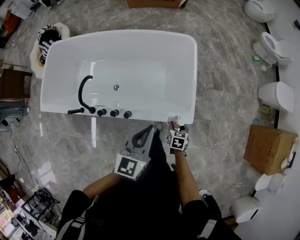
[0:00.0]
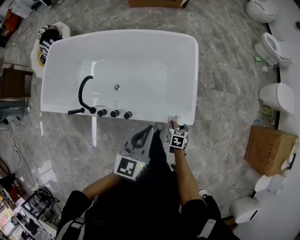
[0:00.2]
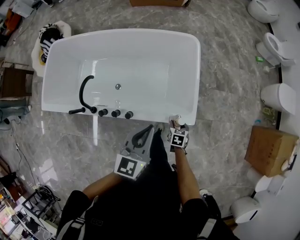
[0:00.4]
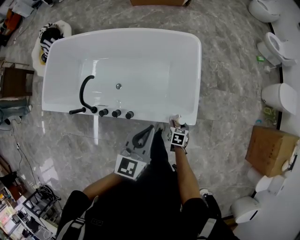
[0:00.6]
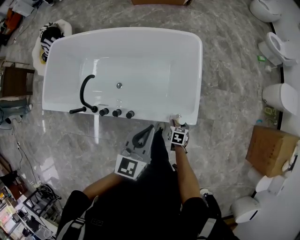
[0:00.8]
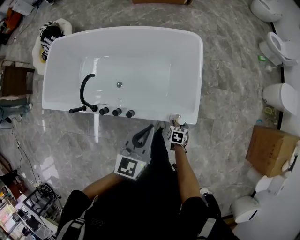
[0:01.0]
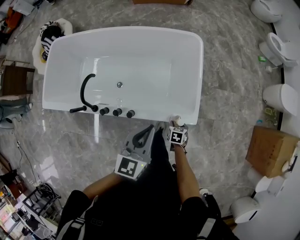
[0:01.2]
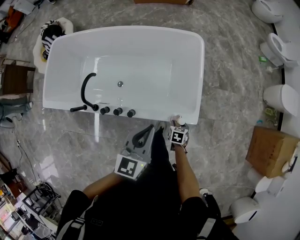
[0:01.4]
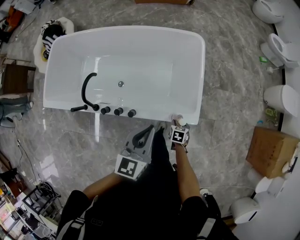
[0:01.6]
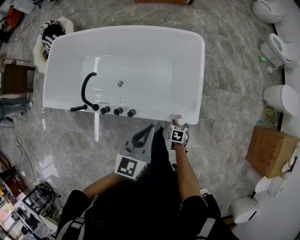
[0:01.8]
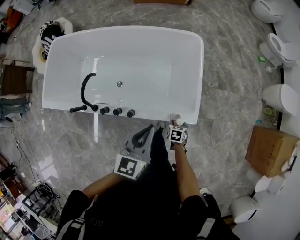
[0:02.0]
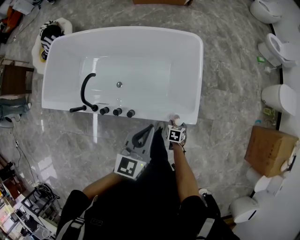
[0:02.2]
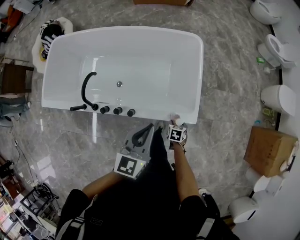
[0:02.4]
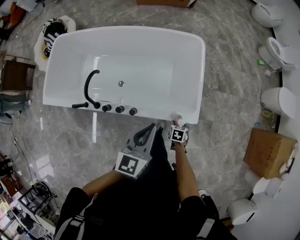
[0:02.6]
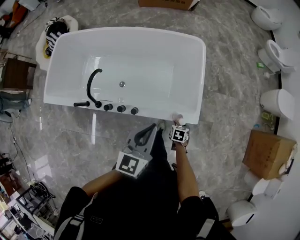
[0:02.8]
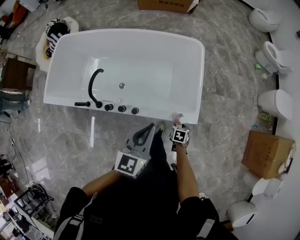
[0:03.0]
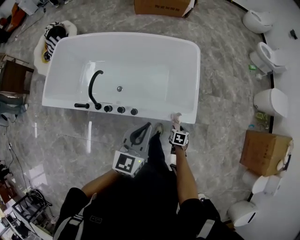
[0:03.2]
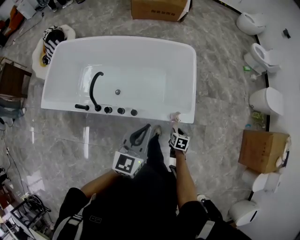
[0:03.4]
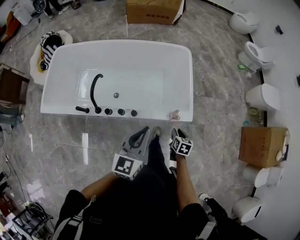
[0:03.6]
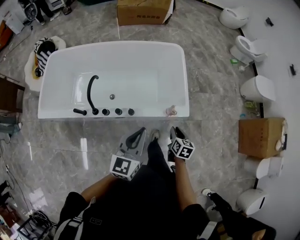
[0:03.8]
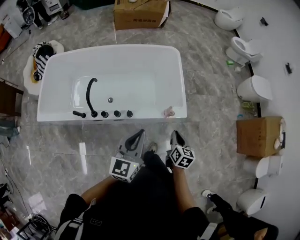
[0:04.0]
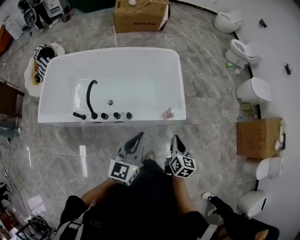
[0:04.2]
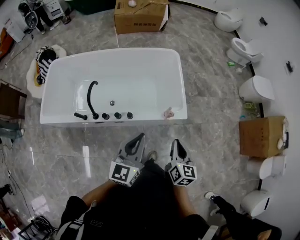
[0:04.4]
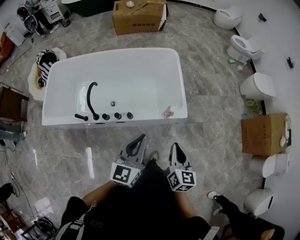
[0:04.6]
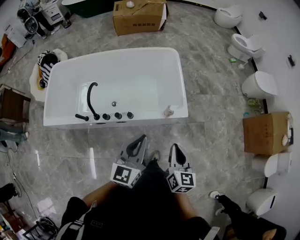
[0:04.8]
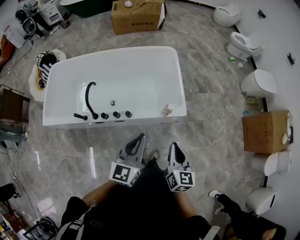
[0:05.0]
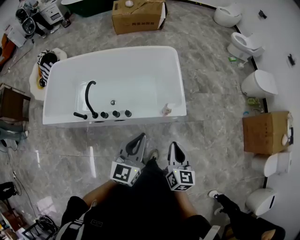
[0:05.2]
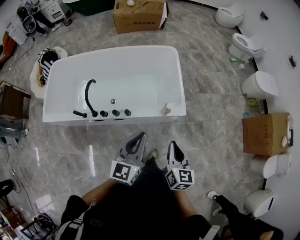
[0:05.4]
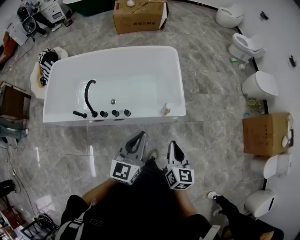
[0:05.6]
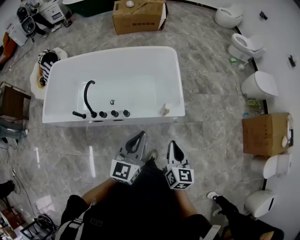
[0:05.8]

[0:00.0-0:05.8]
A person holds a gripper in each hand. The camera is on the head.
0:00.0 to 0:01.4: The right gripper goes about 5 cm downward.
0:01.4 to 0:02.8: The grippers move only a little.
0:02.8 to 0:04.4: The right gripper travels upward and backward by about 40 cm, points its fingers about 50 degrees further upward, and closes its fingers; the left gripper travels backward by about 20 cm.
0:04.4 to 0:05.8: The left gripper heads to the right, covering roughly 5 cm.

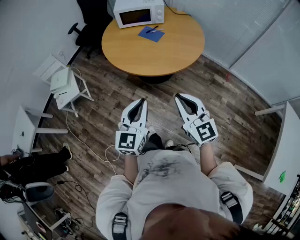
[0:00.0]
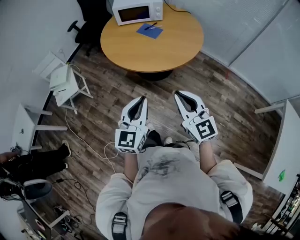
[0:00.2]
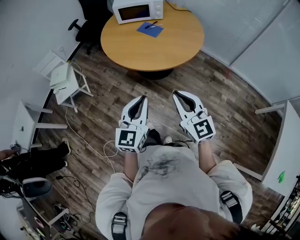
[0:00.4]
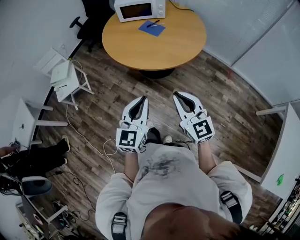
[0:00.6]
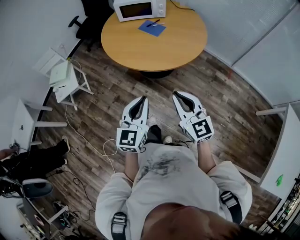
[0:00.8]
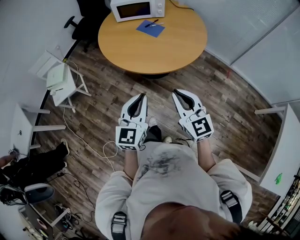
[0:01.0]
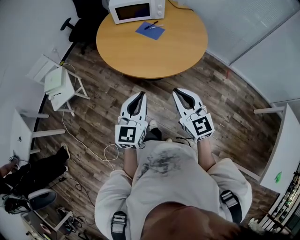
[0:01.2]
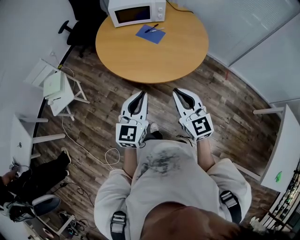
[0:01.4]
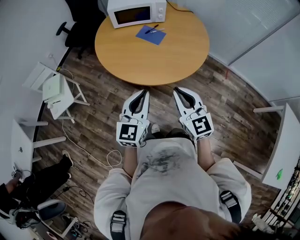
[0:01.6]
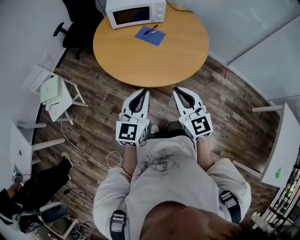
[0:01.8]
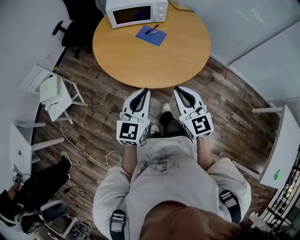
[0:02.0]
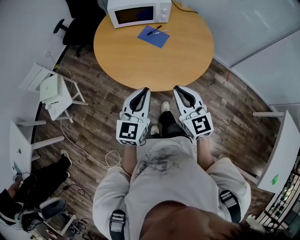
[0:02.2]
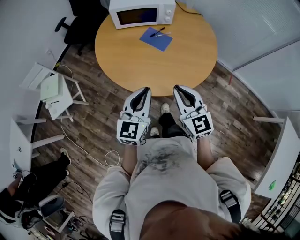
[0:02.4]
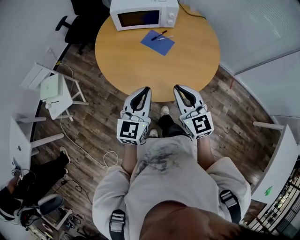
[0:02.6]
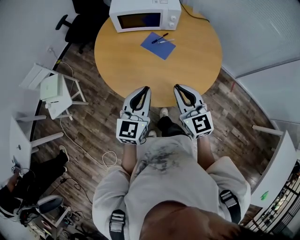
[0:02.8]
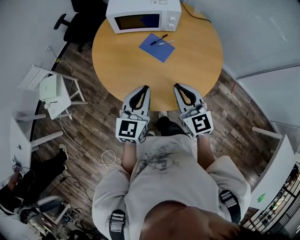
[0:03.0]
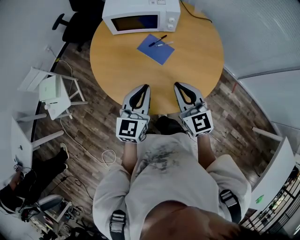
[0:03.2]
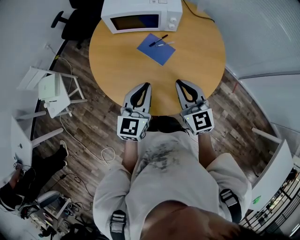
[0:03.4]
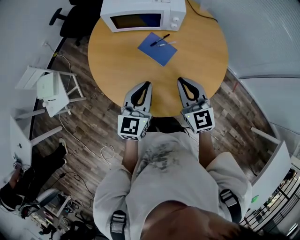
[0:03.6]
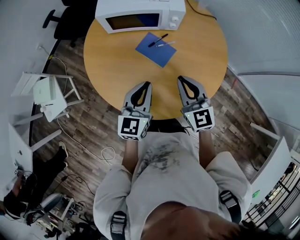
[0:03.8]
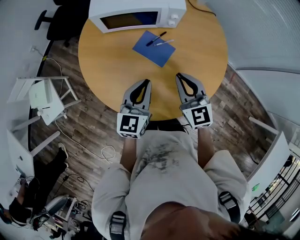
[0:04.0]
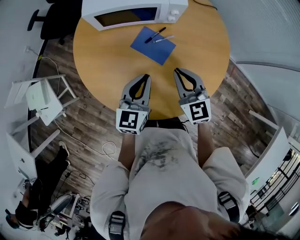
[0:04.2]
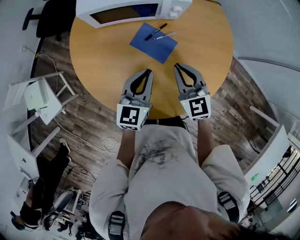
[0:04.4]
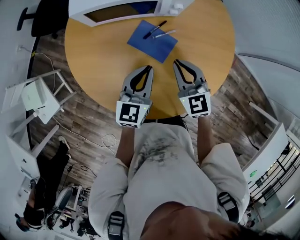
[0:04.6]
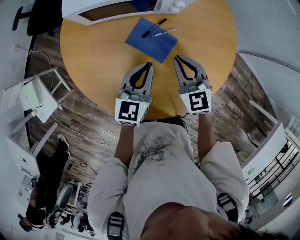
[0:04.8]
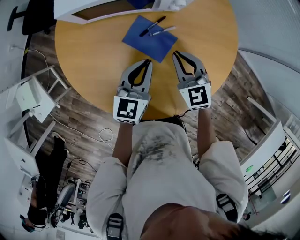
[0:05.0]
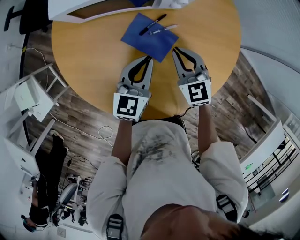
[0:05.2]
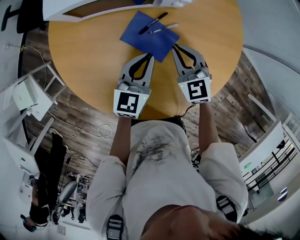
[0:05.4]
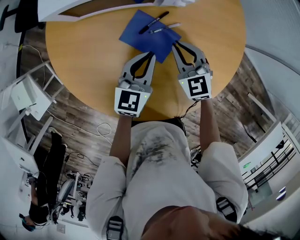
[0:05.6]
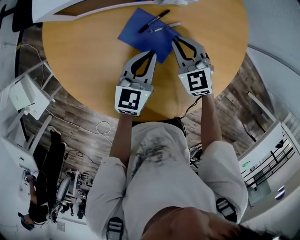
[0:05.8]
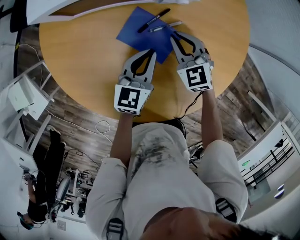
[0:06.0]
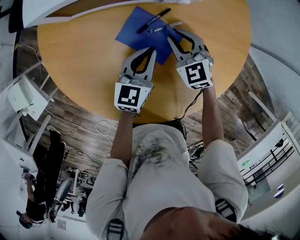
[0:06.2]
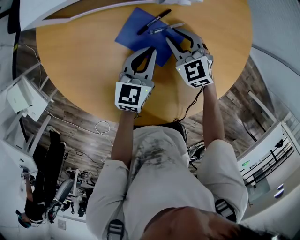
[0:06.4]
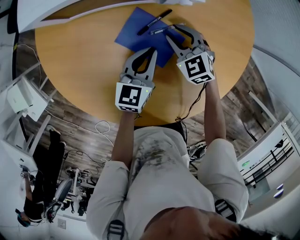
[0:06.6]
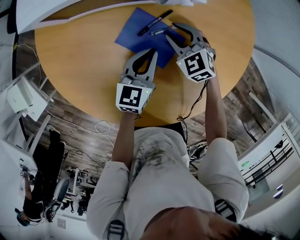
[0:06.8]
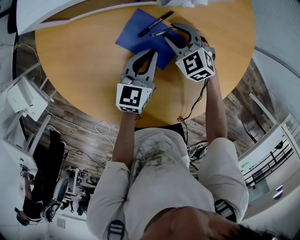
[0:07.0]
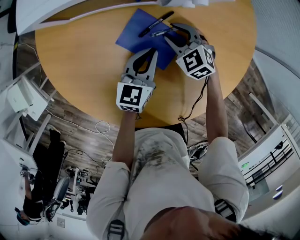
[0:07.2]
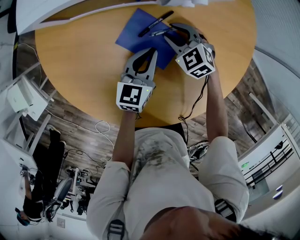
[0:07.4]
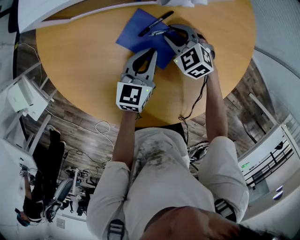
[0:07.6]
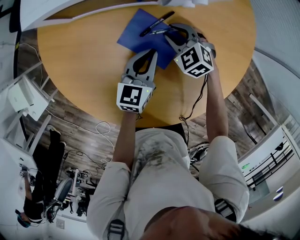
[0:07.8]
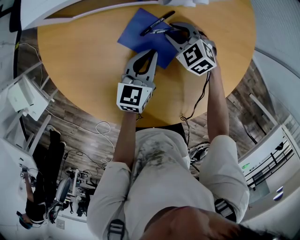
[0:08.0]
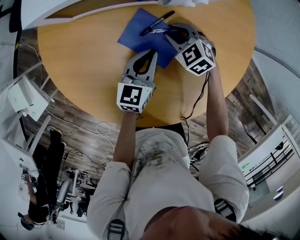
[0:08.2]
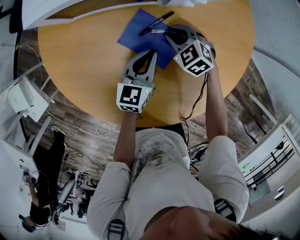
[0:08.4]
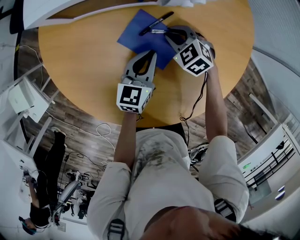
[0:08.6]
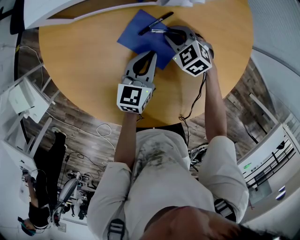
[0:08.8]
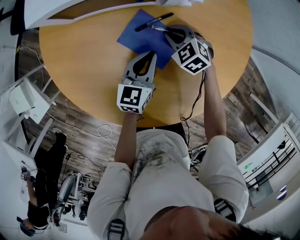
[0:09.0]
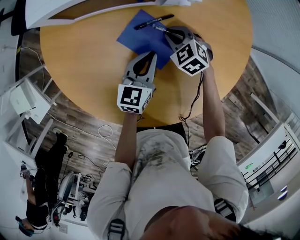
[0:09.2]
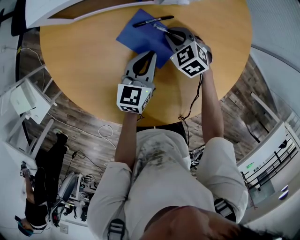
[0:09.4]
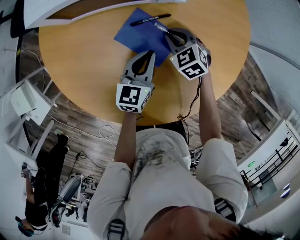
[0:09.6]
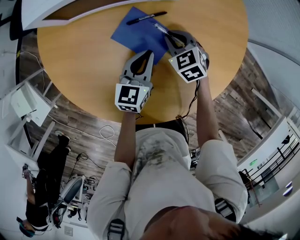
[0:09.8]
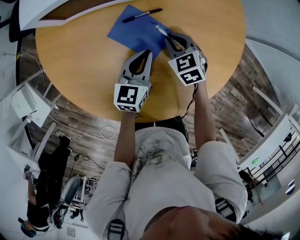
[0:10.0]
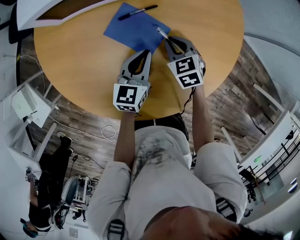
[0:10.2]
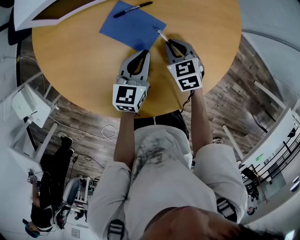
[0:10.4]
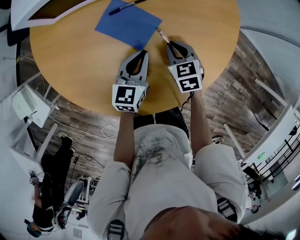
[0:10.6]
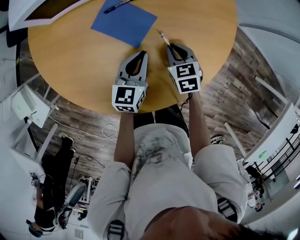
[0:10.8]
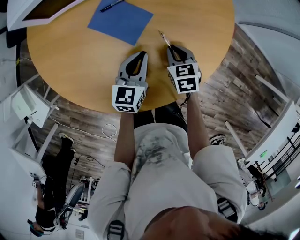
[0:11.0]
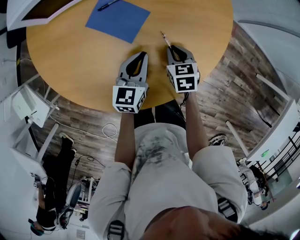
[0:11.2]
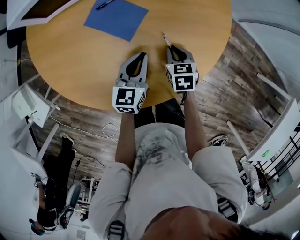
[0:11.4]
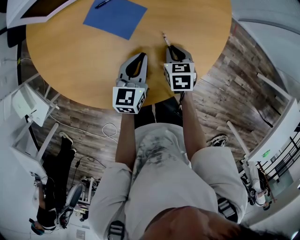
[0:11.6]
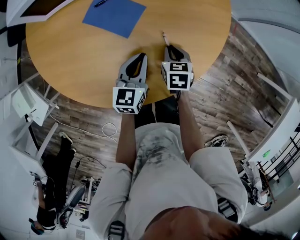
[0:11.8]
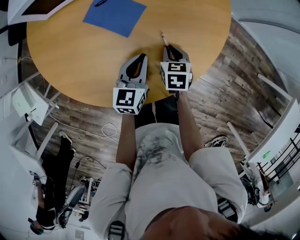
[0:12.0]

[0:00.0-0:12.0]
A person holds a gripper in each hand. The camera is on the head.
0:00.0 to 0:01.6: Both grippers move forward, roughly 15 cm.
0:01.6 to 0:03.0: Both grippers travel together forward, approximately 25 cm.
0:03.0 to 0:04.4: Both grippers travel together forward and downward, roughly 25 cm.
0:04.4 to 0:06.0: Both grippers travel together downward and forward, approximately 20 cm.
0:06.0 to 0:07.6: The right gripper travels downward by some 10 cm, changes its angle by some 20 degrees, and opens up.
0:07.6 to 0:09.0: There are only small adjustments of the grippers.
0:09.0 to 0:10.4: The right gripper heads backward and to the right, covering approximately 15 cm, and rotates roughly 30 degrees, while the left gripper travels backward by approximately 5 cm.
0:10.4 to 0:12.0: The grippers both shift backward and to the right by some 10 cm. The right gripper turns by about 30 degrees.

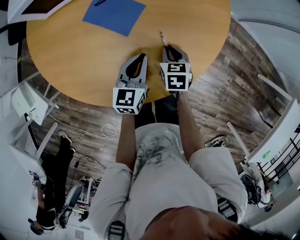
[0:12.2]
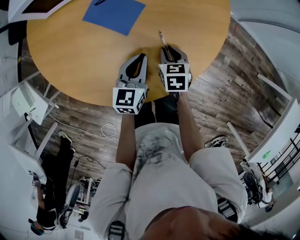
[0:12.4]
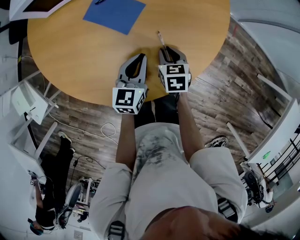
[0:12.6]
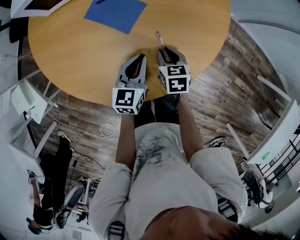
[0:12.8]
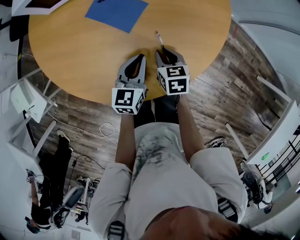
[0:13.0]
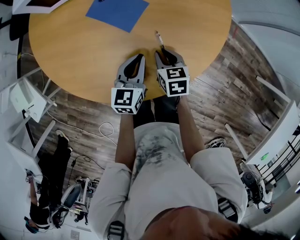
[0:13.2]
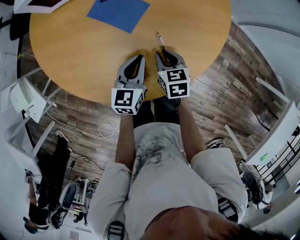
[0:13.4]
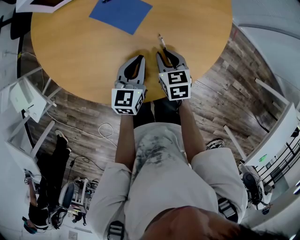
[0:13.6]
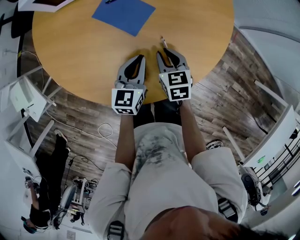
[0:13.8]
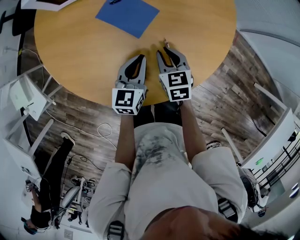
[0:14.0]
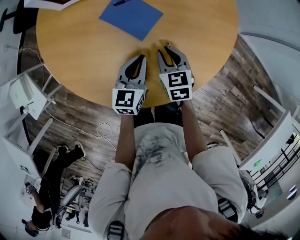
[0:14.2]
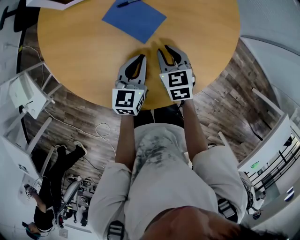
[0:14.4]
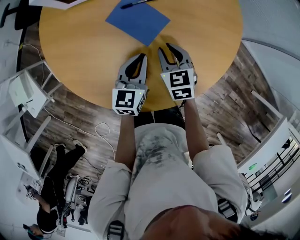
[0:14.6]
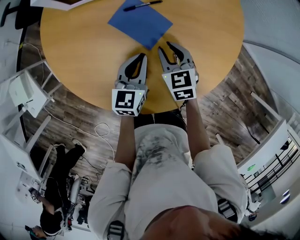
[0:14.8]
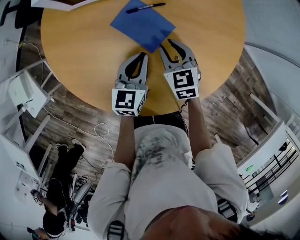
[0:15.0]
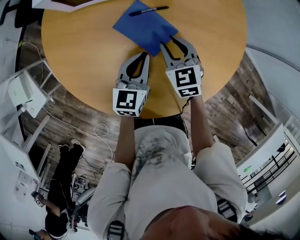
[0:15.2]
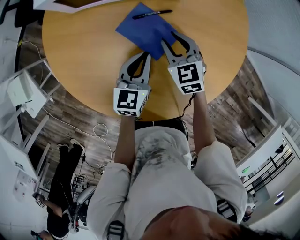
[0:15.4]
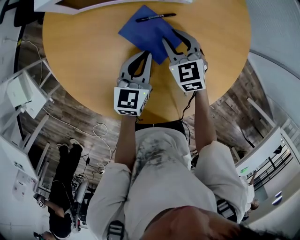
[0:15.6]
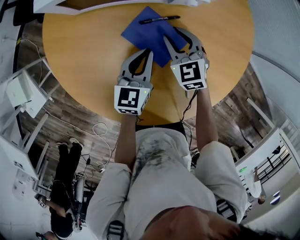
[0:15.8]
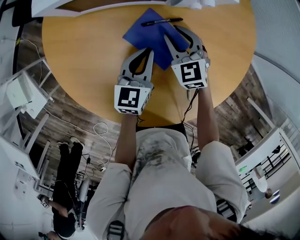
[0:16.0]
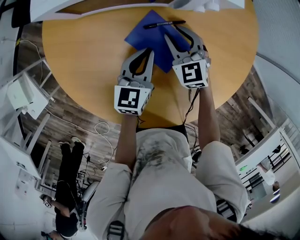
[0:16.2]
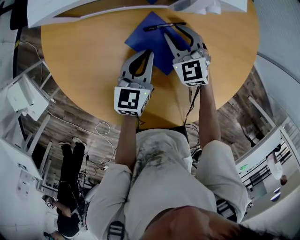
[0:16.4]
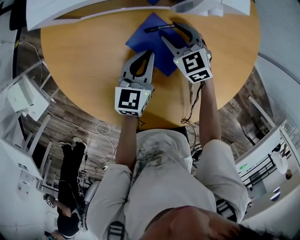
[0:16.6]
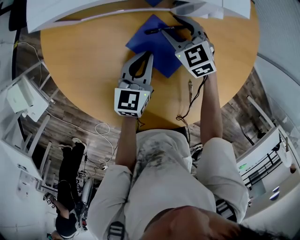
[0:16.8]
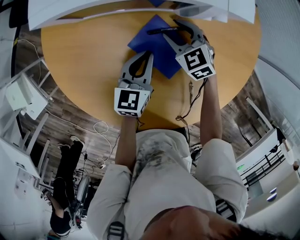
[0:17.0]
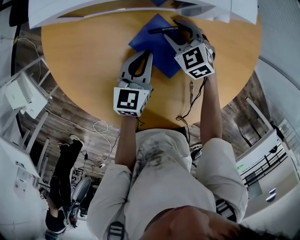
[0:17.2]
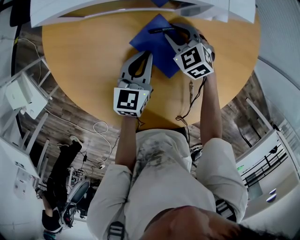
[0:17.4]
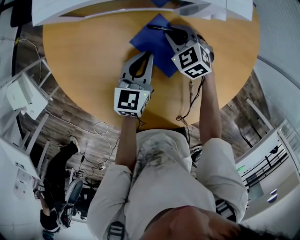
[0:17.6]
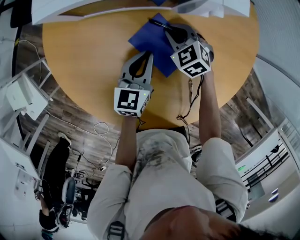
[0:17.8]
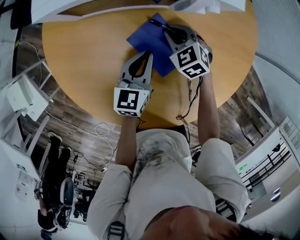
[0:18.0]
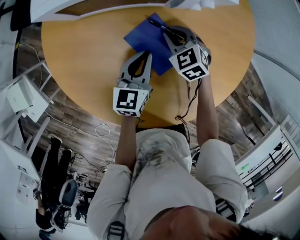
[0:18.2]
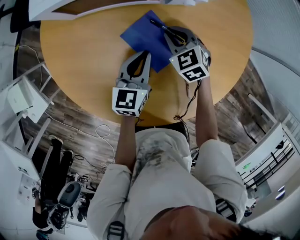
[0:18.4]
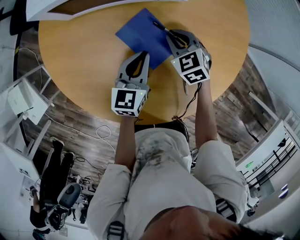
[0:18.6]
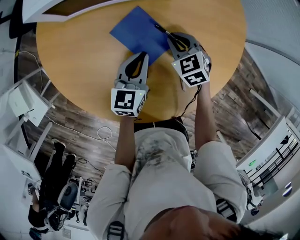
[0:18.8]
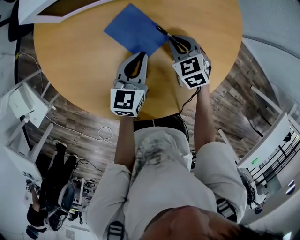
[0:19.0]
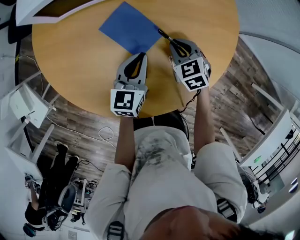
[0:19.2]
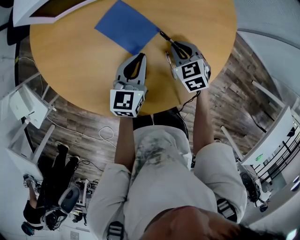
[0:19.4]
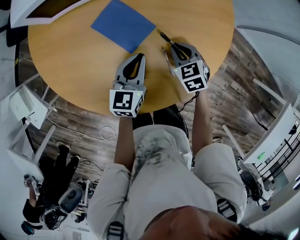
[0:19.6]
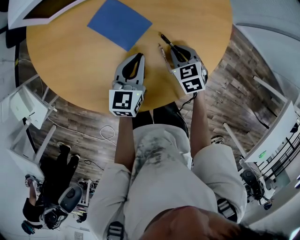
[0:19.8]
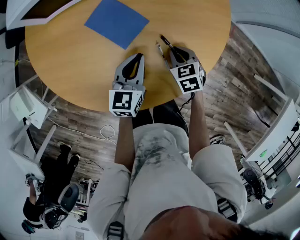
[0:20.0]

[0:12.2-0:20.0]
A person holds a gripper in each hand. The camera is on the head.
0:12.2 to 0:13.8: The right gripper moves to the left, some 5 cm.
0:13.8 to 0:15.4: Both grippers move forward and to the left, about 15 cm. The right gripper swivels about 30 degrees.
0:15.4 to 0:16.8: The two grippers go some 10 cm forward.
0:16.8 to 0:18.4: The right gripper heads backward, covering roughly 5 cm, and closes.
0:18.4 to 0:20.0: The right gripper goes some 25 cm backward and to the right, and turns by approximately 30 degrees. The left gripper goes roughly 15 cm backward and to the right.
